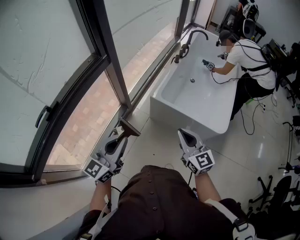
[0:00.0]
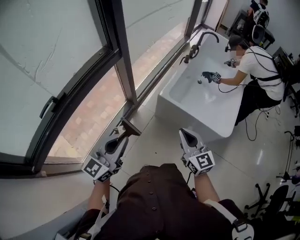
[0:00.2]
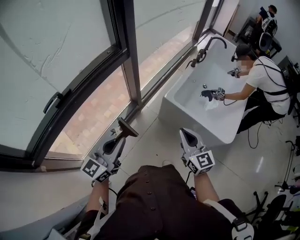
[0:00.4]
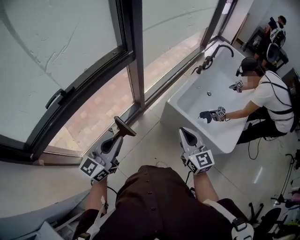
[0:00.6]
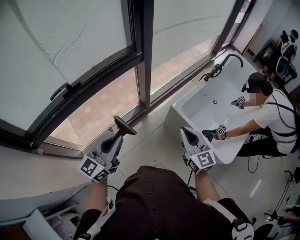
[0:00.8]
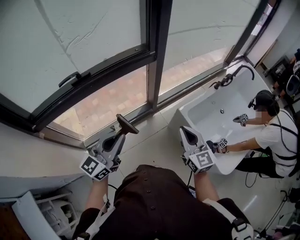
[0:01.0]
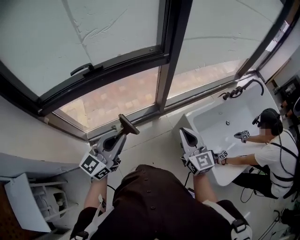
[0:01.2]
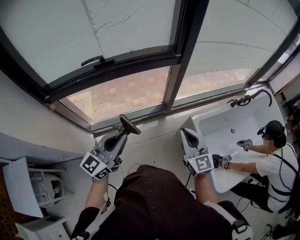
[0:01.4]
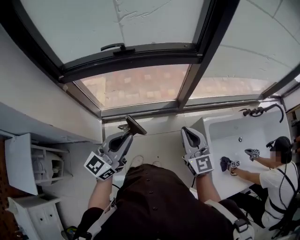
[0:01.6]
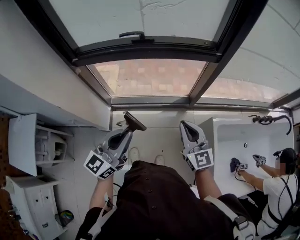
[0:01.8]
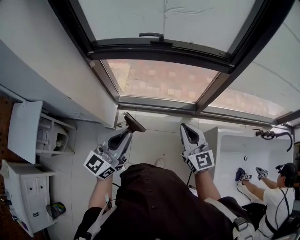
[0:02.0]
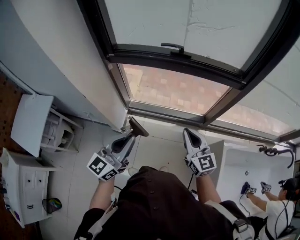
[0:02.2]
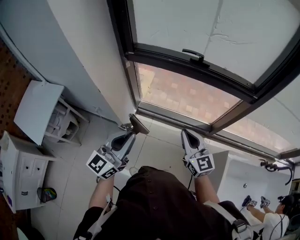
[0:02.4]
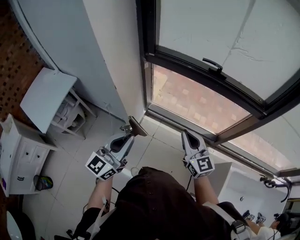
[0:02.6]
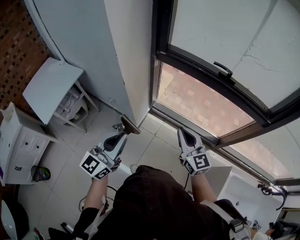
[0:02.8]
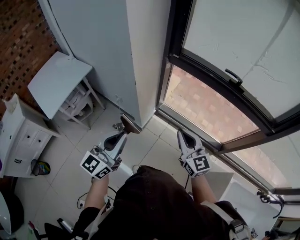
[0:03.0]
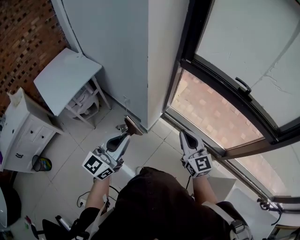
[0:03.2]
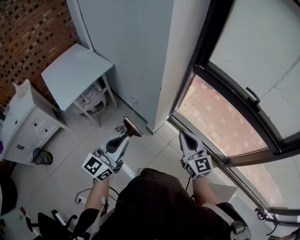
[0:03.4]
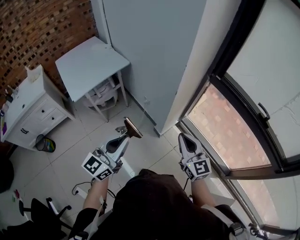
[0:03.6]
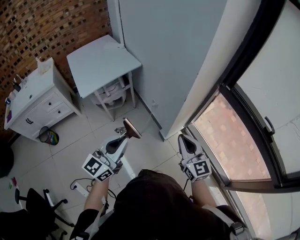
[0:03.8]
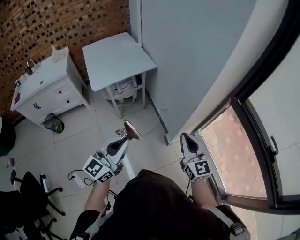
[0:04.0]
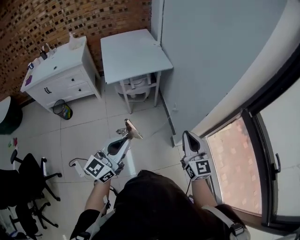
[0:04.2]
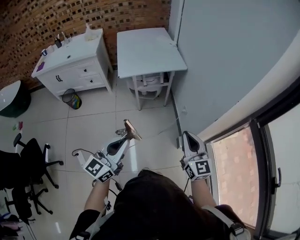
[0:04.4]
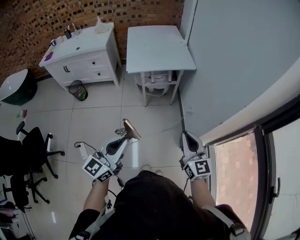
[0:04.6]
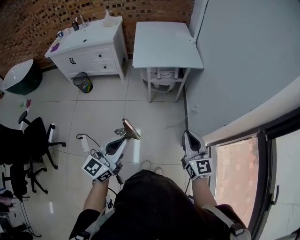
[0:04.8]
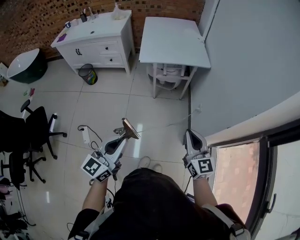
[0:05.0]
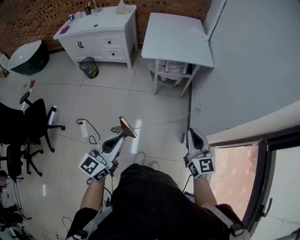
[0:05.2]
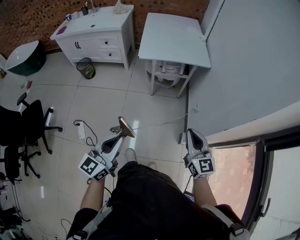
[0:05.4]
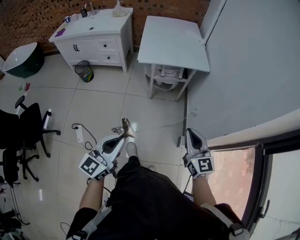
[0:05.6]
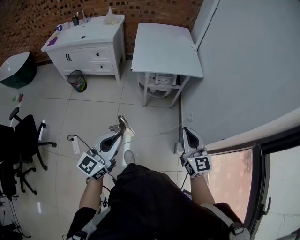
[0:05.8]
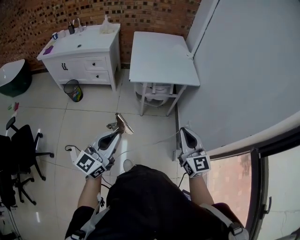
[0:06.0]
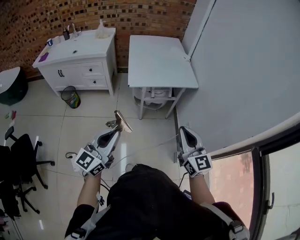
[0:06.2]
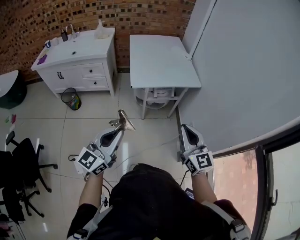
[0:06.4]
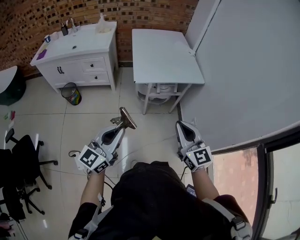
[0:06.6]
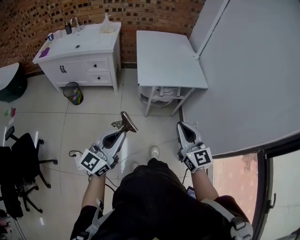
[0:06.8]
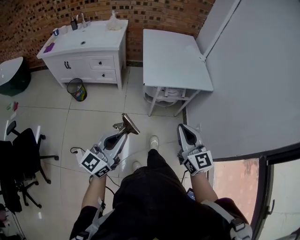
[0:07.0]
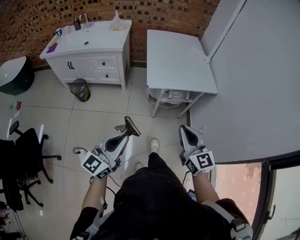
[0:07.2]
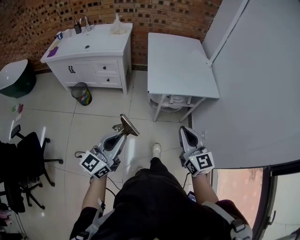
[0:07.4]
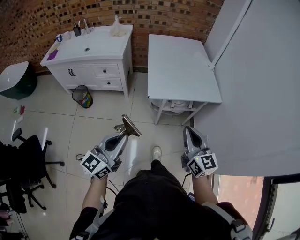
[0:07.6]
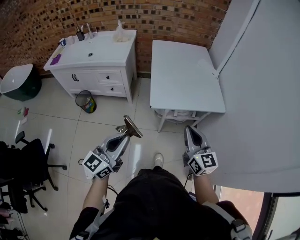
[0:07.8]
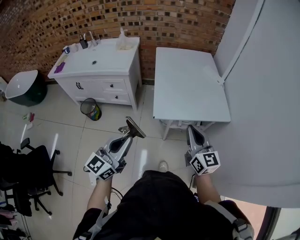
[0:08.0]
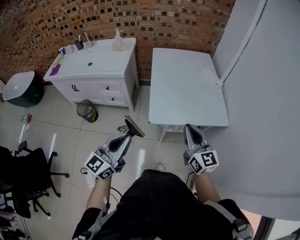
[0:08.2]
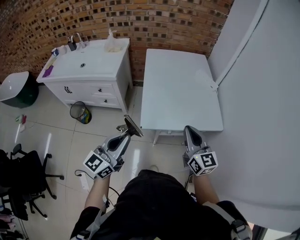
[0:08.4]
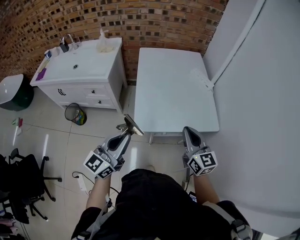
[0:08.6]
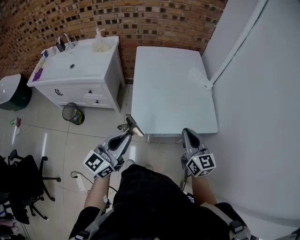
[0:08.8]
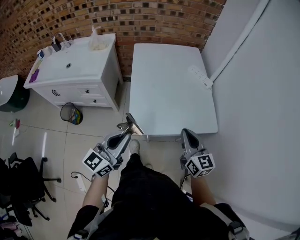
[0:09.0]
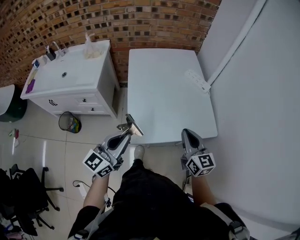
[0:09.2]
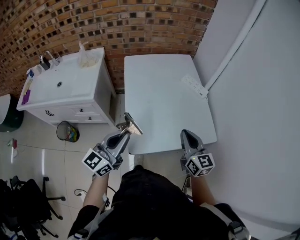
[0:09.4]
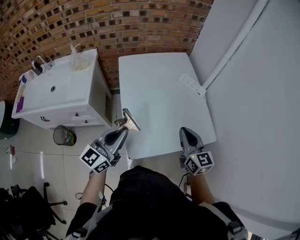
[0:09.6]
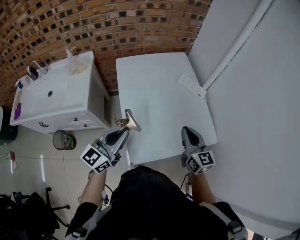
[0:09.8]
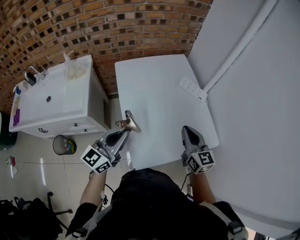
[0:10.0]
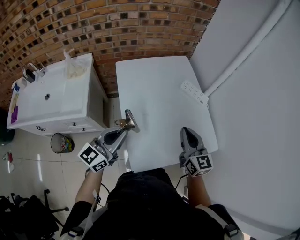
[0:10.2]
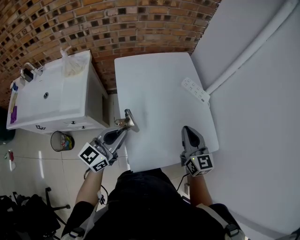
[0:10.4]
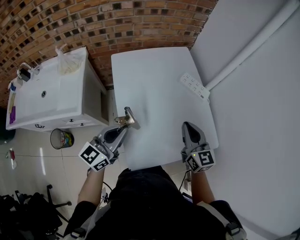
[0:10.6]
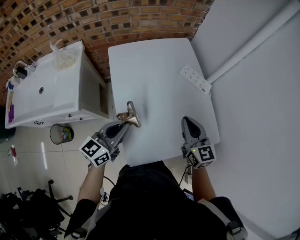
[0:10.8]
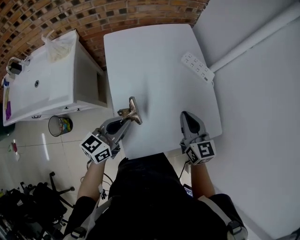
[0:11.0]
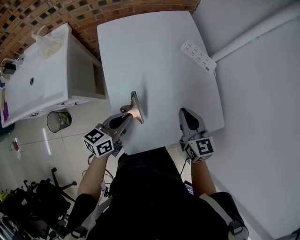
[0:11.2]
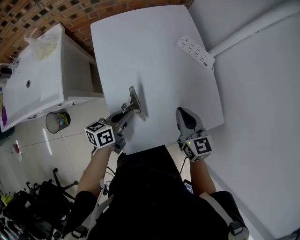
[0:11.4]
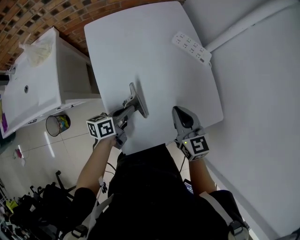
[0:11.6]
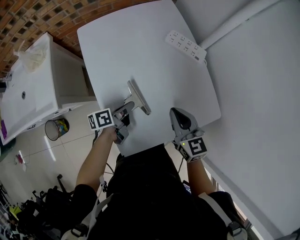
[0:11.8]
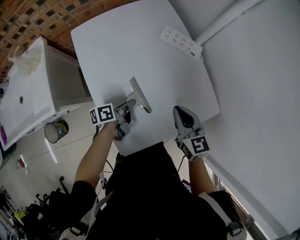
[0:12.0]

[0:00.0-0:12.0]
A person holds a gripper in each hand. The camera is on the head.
0:00.0 to 0:01.6: The right gripper ends up approximately 15 cm from where it was, and changes its angle by about 50 degrees; the left gripper shifts by about 10 cm, and changes its angle by roughly 50 degrees.
0:01.6 to 0:03.0: The left gripper shifts by some 35 cm, and turns by about 50 degrees. The right gripper ends up roughly 35 cm from where it was, and changes its angle by roughly 40 degrees.
0:03.0 to 0:04.4: The right gripper shifts by some 30 cm, and rotates approximately 40 degrees. Meanwhile the left gripper shifts by approximately 25 cm, and turns by about 50 degrees.
0:04.4 to 0:06.0: The left gripper is displaced to the left and forward by about 10 cm. The right gripper travels forward and to the left by about 15 cm.
0:06.0 to 0:07.6: The two grippers go approximately 20 cm forward and to the left.
0:07.6 to 0:09.0: Both grippers travel together forward, about 30 cm.
0:09.0 to 0:10.4: The two grippers go some 20 cm forward.
0:10.4 to 0:12.0: The left gripper travels downward and to the right by about 30 cm, and rolls counterclockwise, seen from behind, by approximately 60 degrees. Meanwhile the right gripper goes some 10 cm downward.

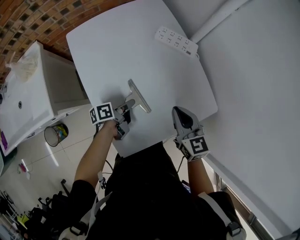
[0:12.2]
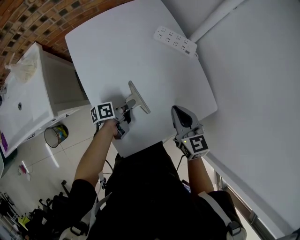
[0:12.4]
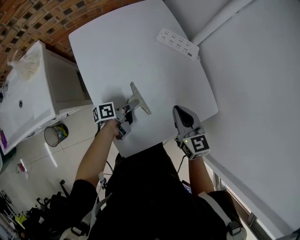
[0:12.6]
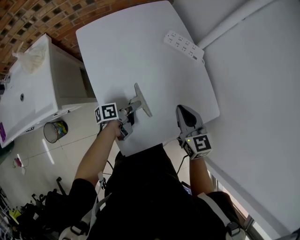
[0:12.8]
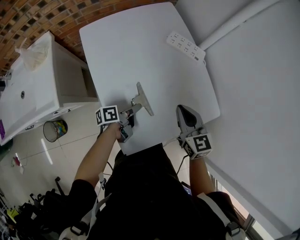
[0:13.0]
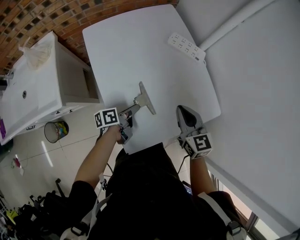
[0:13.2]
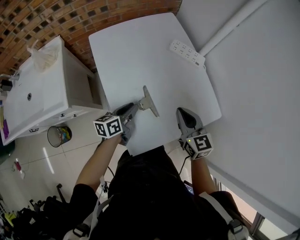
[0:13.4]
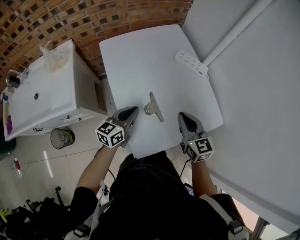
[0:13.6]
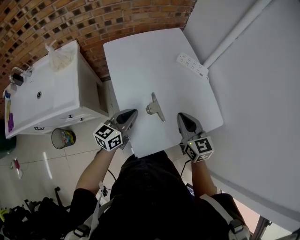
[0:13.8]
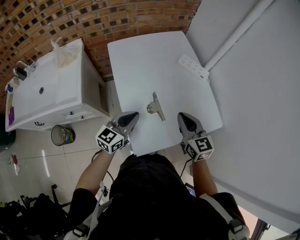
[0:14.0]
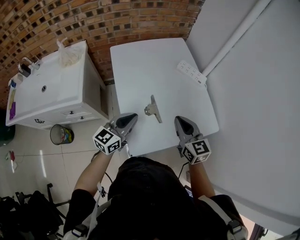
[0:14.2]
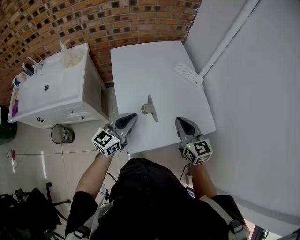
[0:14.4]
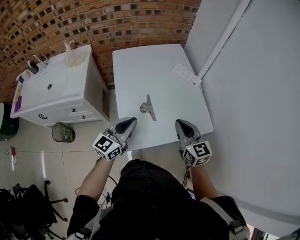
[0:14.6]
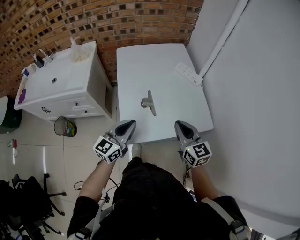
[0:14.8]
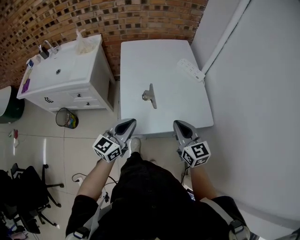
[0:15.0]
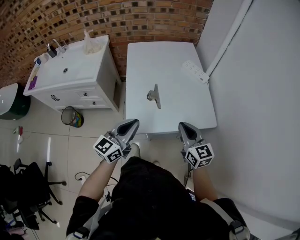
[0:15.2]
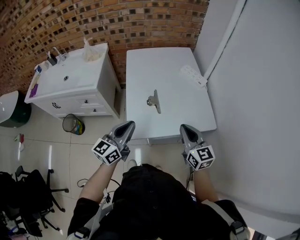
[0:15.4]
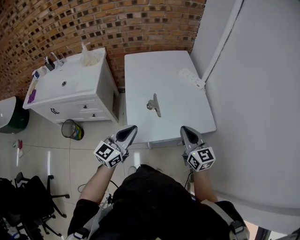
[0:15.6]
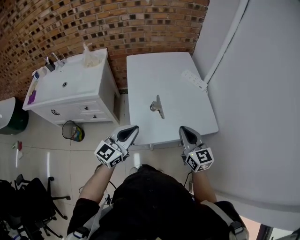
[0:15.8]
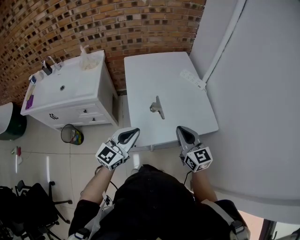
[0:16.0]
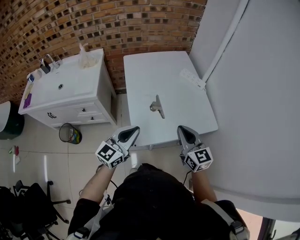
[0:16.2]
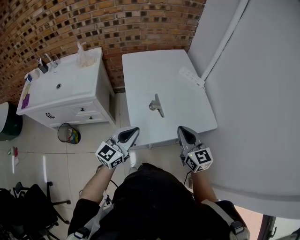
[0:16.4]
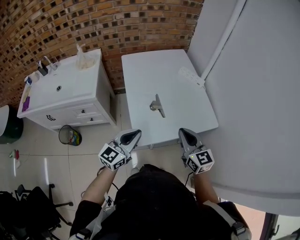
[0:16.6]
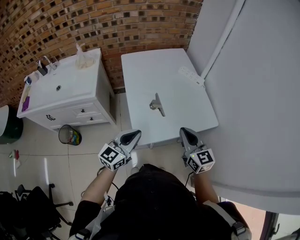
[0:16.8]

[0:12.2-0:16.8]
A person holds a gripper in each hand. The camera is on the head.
0:12.2 to 0:13.8: The left gripper shifts approximately 20 cm upward, to the left and backward, twists some 60 degrees clockwise, seen from behind, and opens, then closes again; the right gripper travels to the left by about 5 cm.
0:13.8 to 0:15.2: The right gripper heads backward and to the right, covering approximately 15 cm; the left gripper shifts approximately 20 cm backward and upward.
0:15.2 to 0:16.8: Both grippers move to the left, approximately 5 cm.

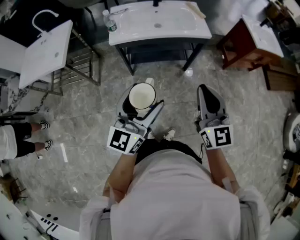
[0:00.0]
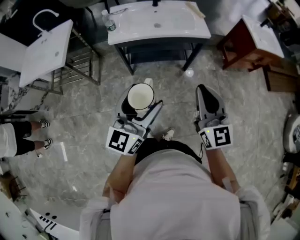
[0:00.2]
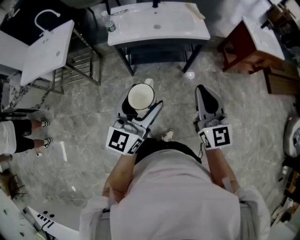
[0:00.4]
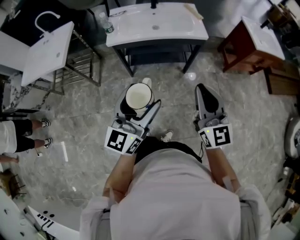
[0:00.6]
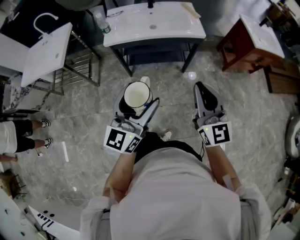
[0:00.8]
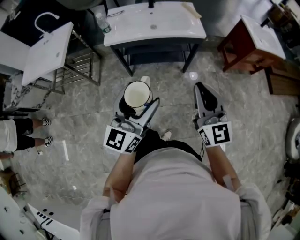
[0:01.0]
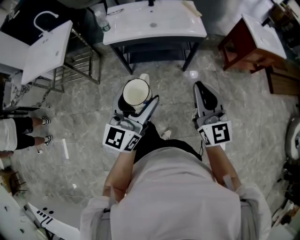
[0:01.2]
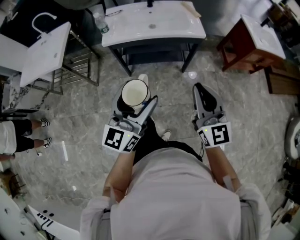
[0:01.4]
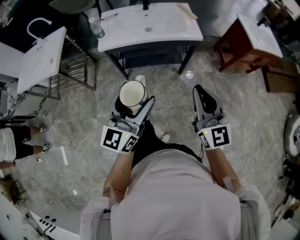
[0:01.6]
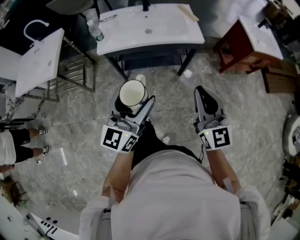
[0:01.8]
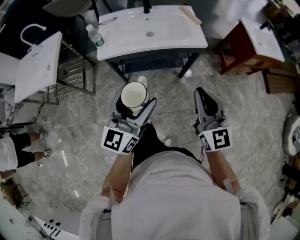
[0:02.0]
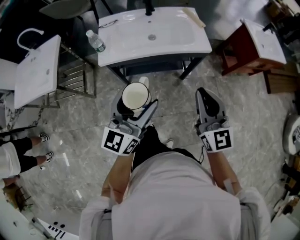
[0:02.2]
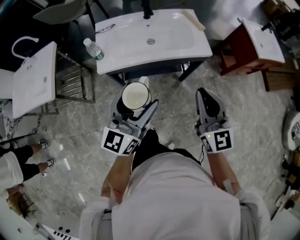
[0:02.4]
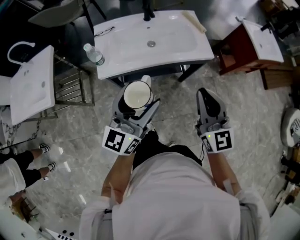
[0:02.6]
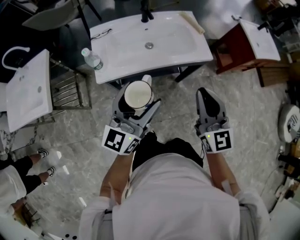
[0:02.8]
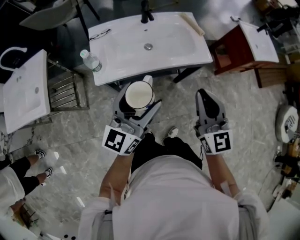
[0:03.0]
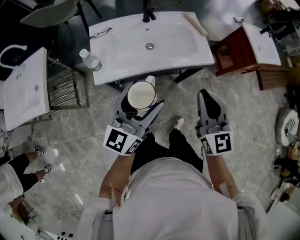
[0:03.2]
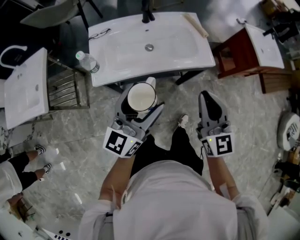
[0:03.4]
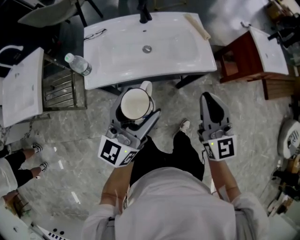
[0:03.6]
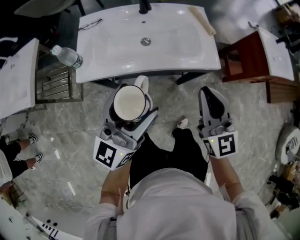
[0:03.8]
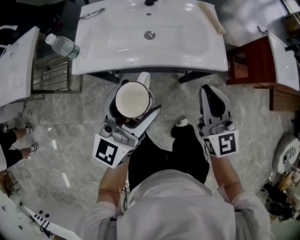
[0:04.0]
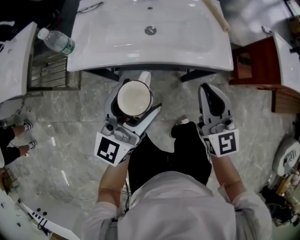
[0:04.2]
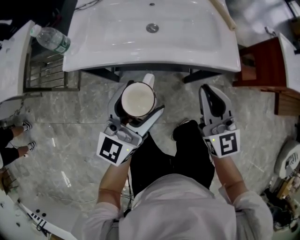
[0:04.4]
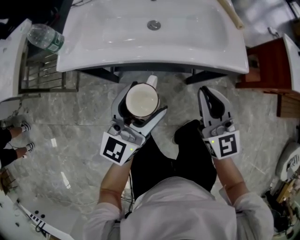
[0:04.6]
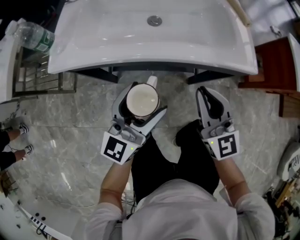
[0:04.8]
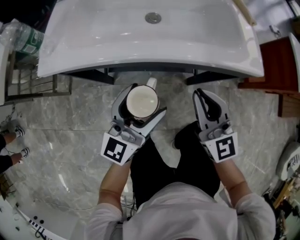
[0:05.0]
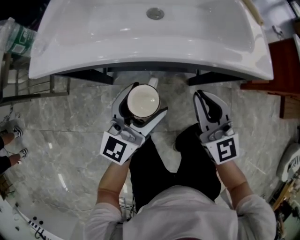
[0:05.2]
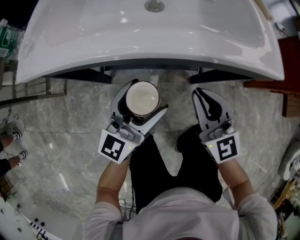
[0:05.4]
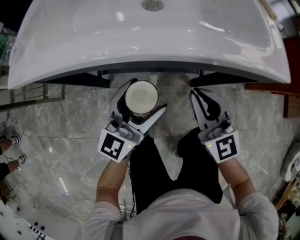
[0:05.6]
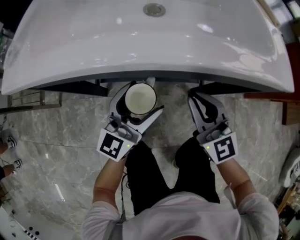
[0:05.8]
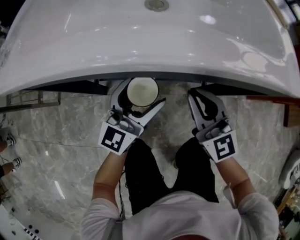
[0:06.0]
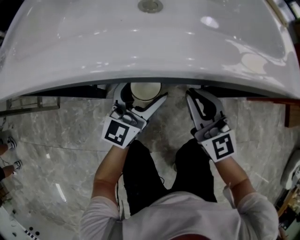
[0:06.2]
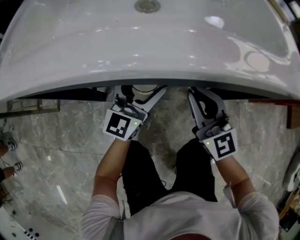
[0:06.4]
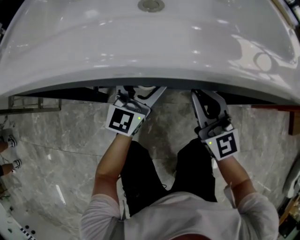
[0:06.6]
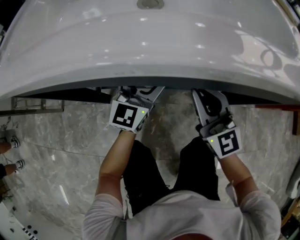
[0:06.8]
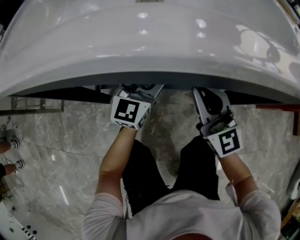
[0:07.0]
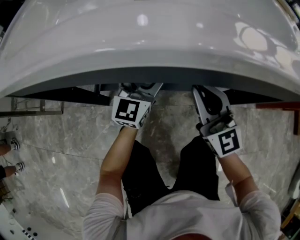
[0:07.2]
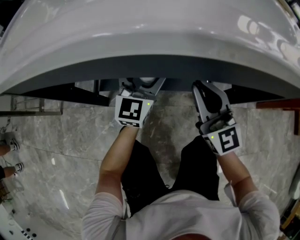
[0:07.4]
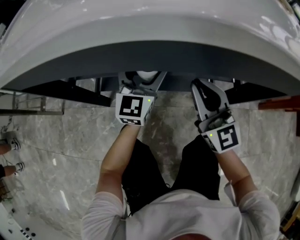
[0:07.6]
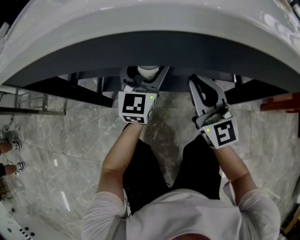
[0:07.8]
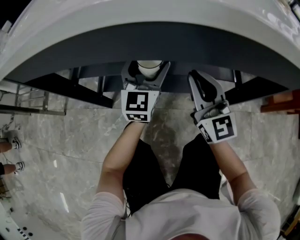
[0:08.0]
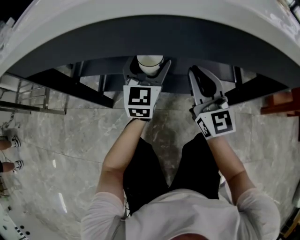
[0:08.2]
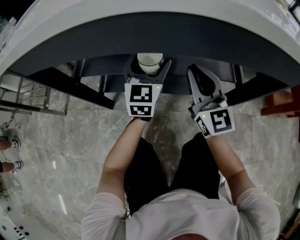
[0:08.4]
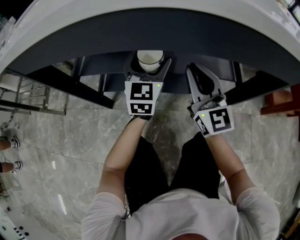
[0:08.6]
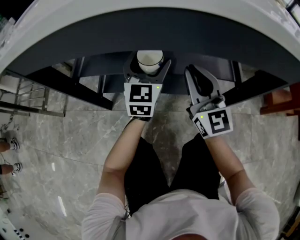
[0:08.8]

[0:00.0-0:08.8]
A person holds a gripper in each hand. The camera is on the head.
0:00.0 to 0:01.4: Both grippers travel together to the right, roughly 5 cm.
0:01.4 to 0:03.0: The right gripper travels forward and to the left by roughly 25 cm. The left gripper shifts about 25 cm forward.
0:03.0 to 0:04.4: The left gripper travels downward and to the right by approximately 20 cm, while the right gripper heads downward and forward, covering approximately 20 cm.
0:04.4 to 0:05.8: Both grippers travel together downward, some 25 cm.
0:05.8 to 0:07.4: The right gripper is displaced downward and forward by about 10 cm. The left gripper moves forward and downward, some 15 cm.
0:07.4 to 0:08.8: The grippers stay close to where they were, moving slightly.